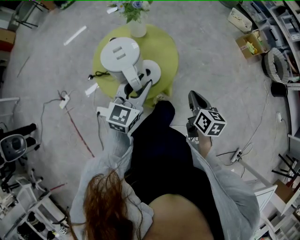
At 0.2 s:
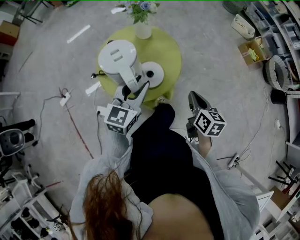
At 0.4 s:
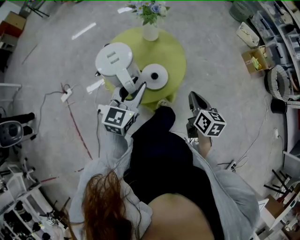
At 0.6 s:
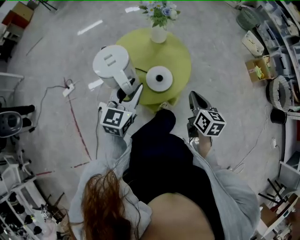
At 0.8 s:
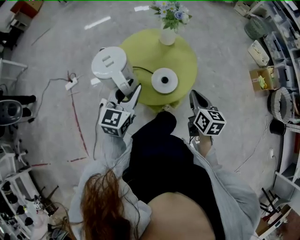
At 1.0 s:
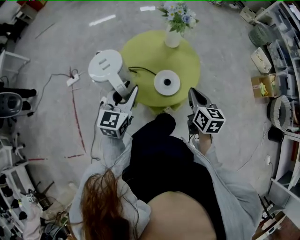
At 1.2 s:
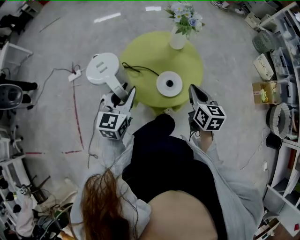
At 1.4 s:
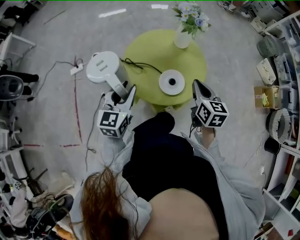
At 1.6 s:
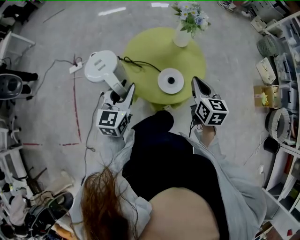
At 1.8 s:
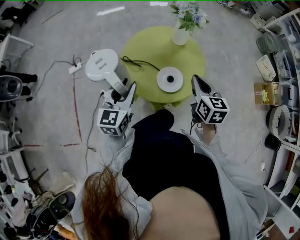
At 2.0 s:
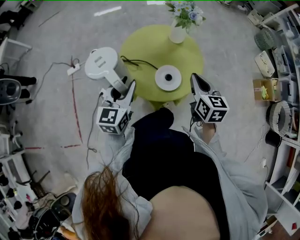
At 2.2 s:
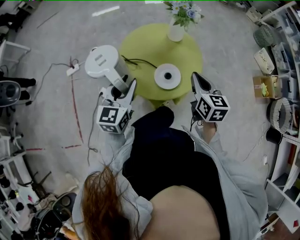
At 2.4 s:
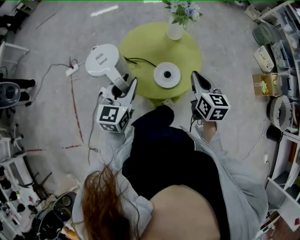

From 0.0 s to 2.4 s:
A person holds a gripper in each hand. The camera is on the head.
From 0.0 s to 1.2 s: The left gripper moves approximately 15 cm, and rotates roughly 30 degrees. Meanwhile the right gripper ends up roughly 15 cm from where it was, and turns by about 30 degrees.
From 1.2 s to 2.4 s: The grippers move only a little.

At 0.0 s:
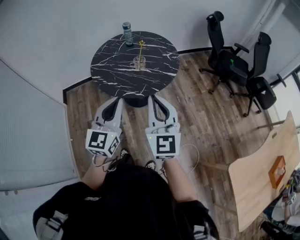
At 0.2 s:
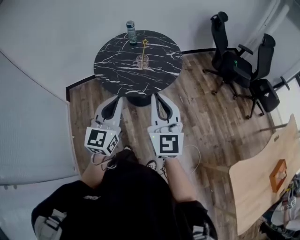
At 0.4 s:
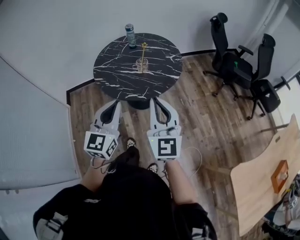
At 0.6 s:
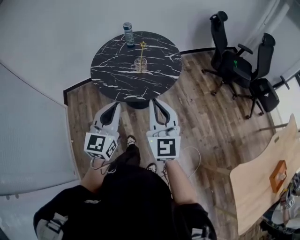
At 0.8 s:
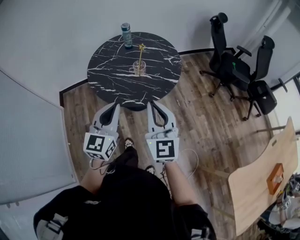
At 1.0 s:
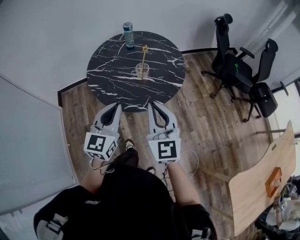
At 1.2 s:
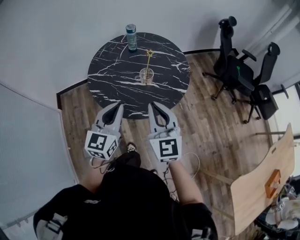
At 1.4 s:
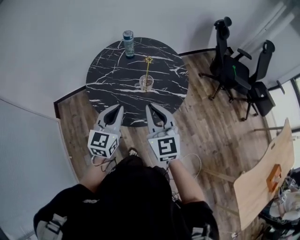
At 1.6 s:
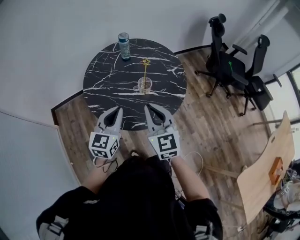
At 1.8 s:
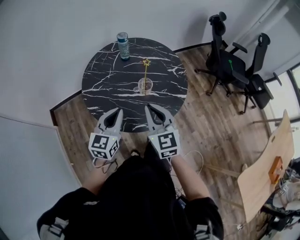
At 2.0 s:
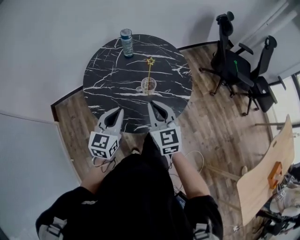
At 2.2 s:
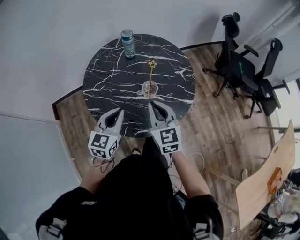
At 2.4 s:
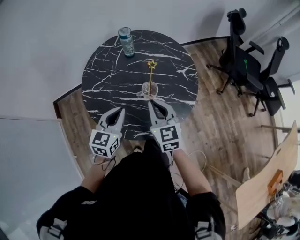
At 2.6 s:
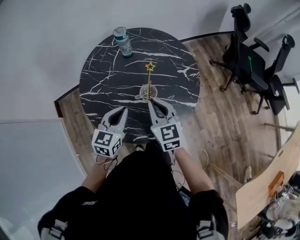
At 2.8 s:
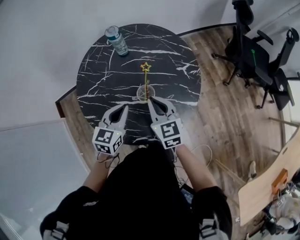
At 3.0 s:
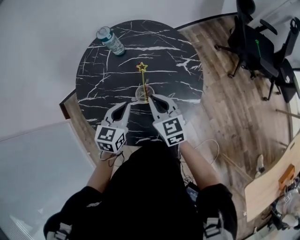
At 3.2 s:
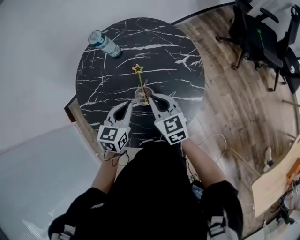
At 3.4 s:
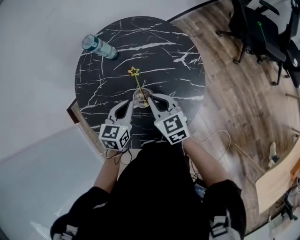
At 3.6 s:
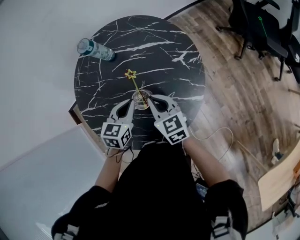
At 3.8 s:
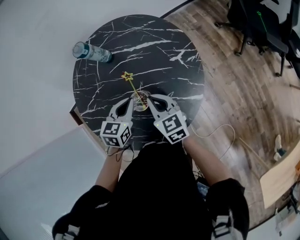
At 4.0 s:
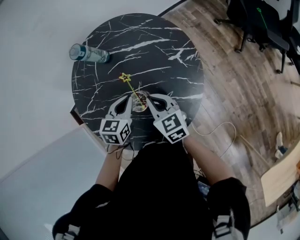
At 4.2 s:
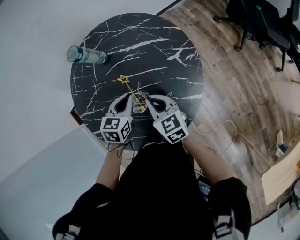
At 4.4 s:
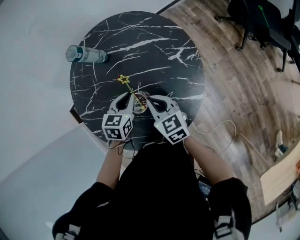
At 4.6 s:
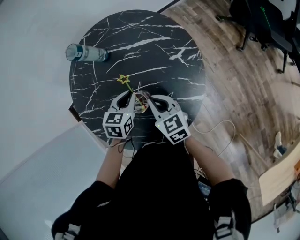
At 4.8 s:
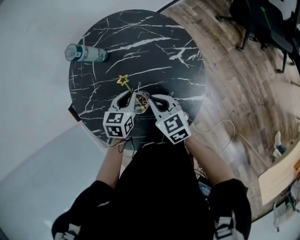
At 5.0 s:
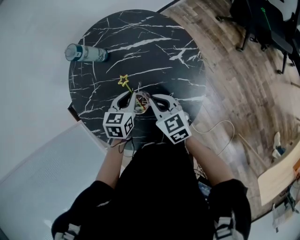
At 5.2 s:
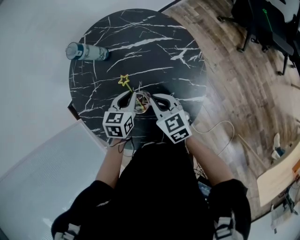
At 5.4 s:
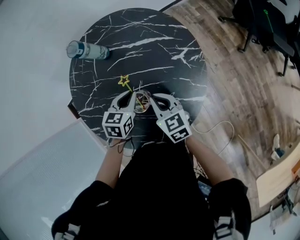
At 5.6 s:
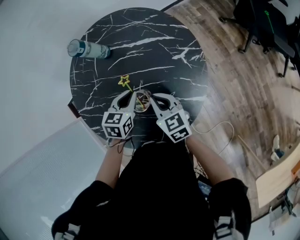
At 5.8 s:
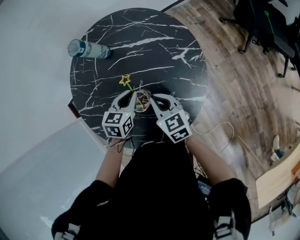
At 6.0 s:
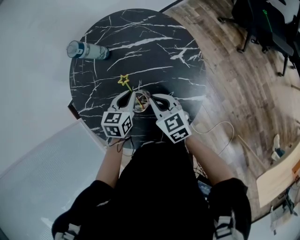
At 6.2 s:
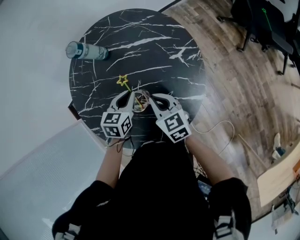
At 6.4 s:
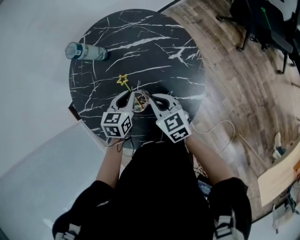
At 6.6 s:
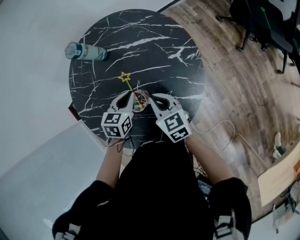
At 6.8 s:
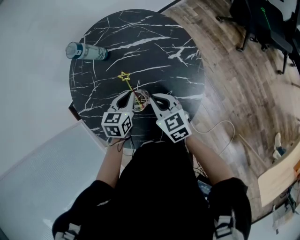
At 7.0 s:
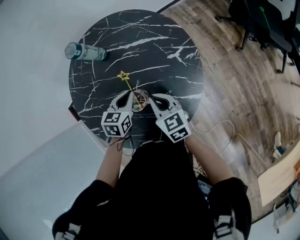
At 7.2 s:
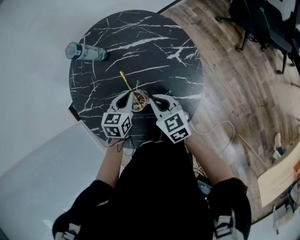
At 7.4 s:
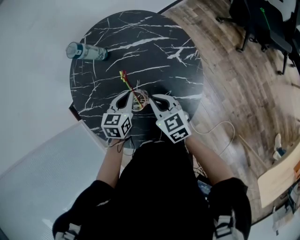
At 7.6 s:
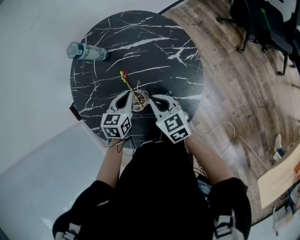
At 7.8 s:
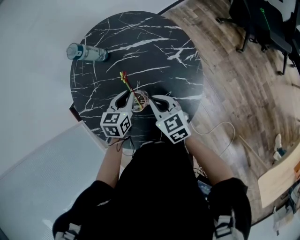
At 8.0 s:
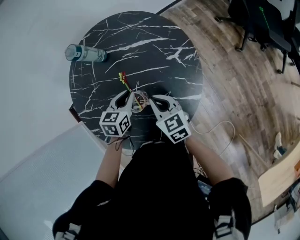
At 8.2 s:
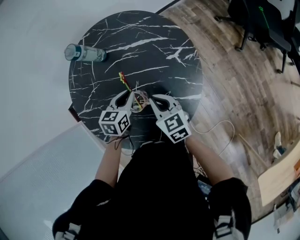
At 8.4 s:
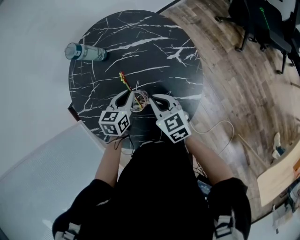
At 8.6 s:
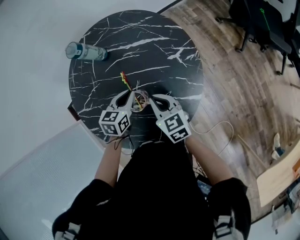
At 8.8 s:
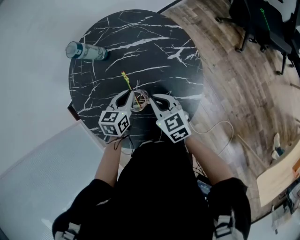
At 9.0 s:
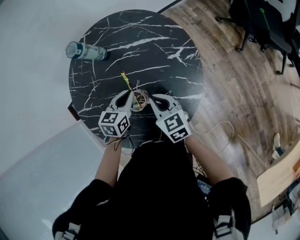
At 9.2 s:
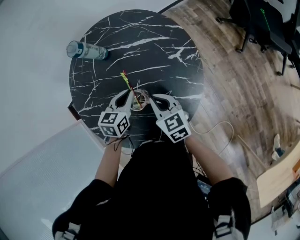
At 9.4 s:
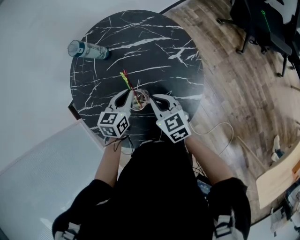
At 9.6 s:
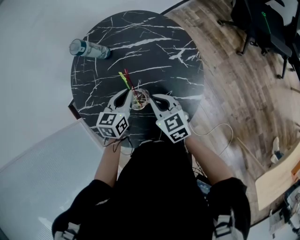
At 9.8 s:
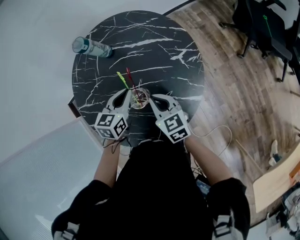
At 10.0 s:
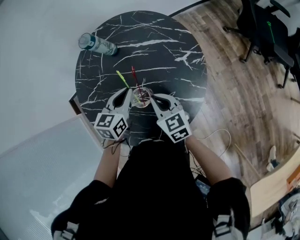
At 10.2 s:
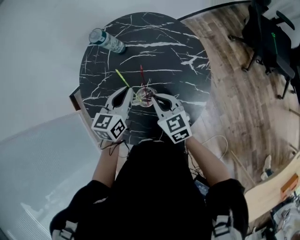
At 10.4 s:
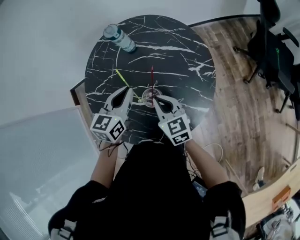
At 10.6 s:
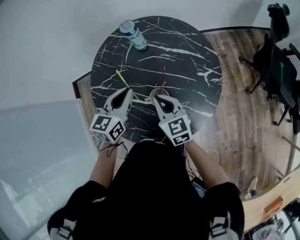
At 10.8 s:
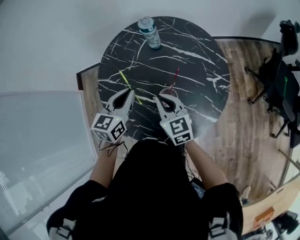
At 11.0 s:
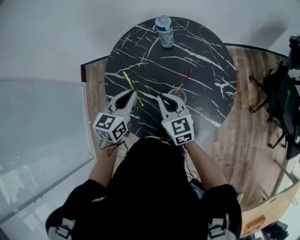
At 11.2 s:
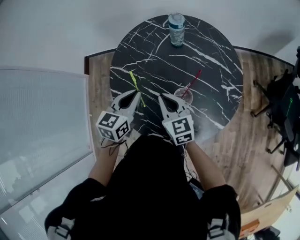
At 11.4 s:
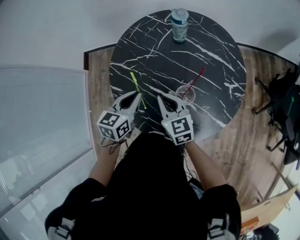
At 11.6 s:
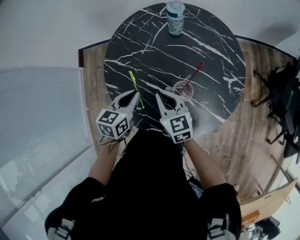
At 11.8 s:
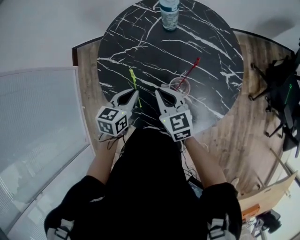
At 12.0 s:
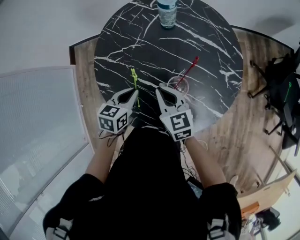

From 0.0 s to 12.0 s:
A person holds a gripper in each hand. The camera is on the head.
From 0.0 s to 1.6 s: The two grippers go some 30 cm forward and to the left.
From 1.6 s to 3.0 s: The grippers both shift forward and downward by some 25 cm. The right gripper changes its angle by roughly 20 degrees. The left gripper turns by roughly 20 degrees.
From 3.0 s to 4.4 s: The left gripper shifts some 15 cm downward, forward and to the right; the right gripper goes about 10 cm downward.
From 4.4 s to 6.0 s: The two grippers keep their place.
From 6.0 s to 7.6 s: The two grippers keep their place.
From 7.6 s to 9.0 s: There are only small adjustments of the grippers.
From 9.0 s to 10.4 s: The right gripper travels upward by roughly 5 cm; the left gripper goes roughly 15 cm upward, and changes its angle by approximately 20 degrees.
From 10.4 s to 12.0 s: The left gripper heads to the left, downward and backward, covering roughly 20 cm, and rotates approximately 20 degrees. Meanwhile the right gripper travels to the left by about 10 cm.

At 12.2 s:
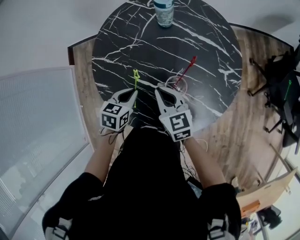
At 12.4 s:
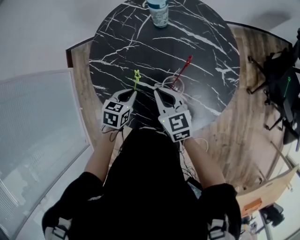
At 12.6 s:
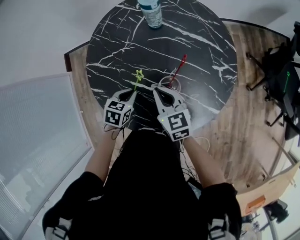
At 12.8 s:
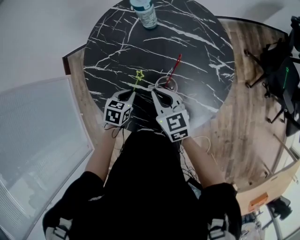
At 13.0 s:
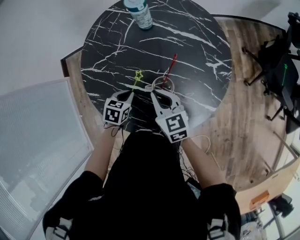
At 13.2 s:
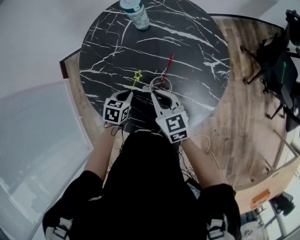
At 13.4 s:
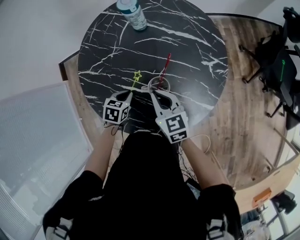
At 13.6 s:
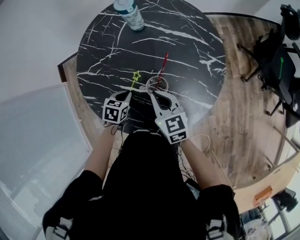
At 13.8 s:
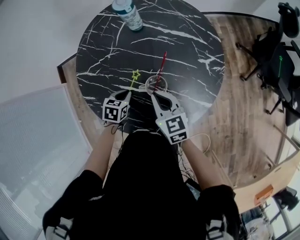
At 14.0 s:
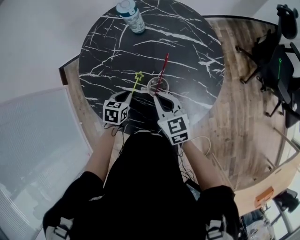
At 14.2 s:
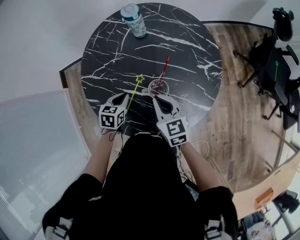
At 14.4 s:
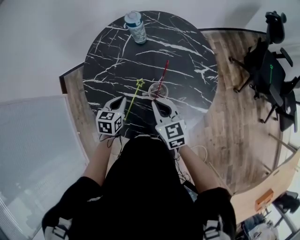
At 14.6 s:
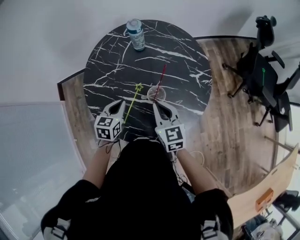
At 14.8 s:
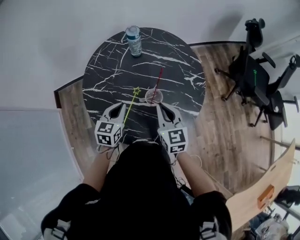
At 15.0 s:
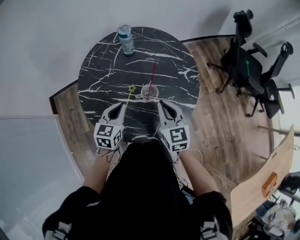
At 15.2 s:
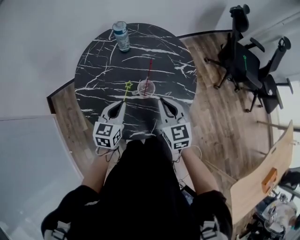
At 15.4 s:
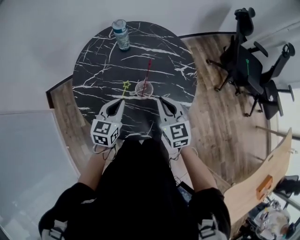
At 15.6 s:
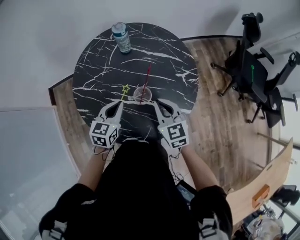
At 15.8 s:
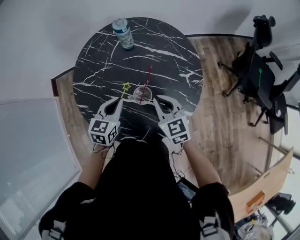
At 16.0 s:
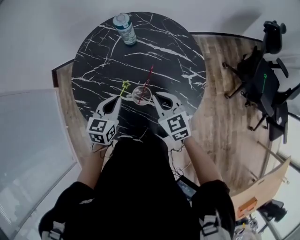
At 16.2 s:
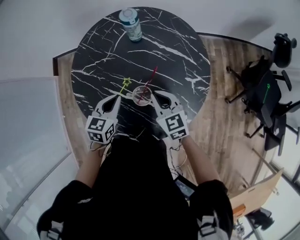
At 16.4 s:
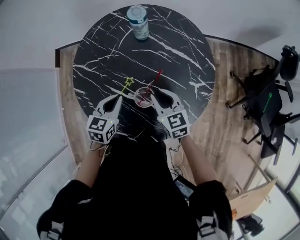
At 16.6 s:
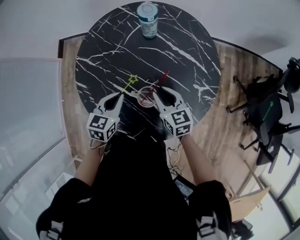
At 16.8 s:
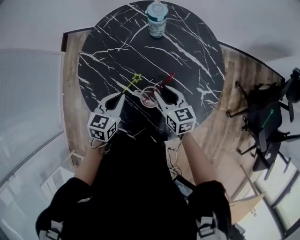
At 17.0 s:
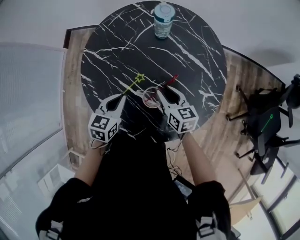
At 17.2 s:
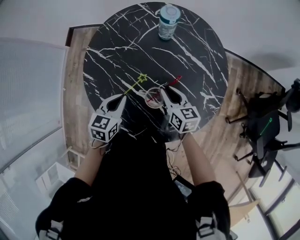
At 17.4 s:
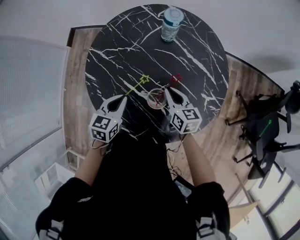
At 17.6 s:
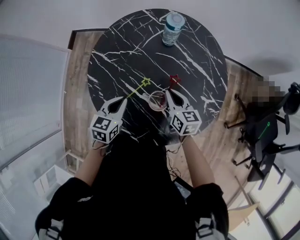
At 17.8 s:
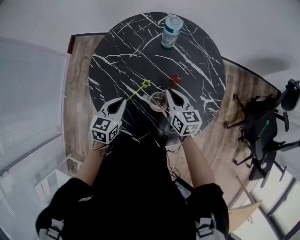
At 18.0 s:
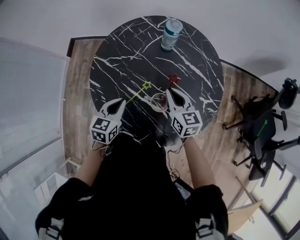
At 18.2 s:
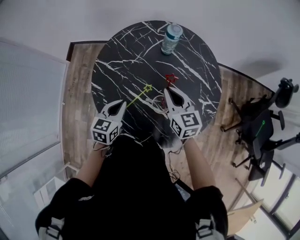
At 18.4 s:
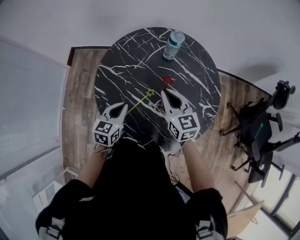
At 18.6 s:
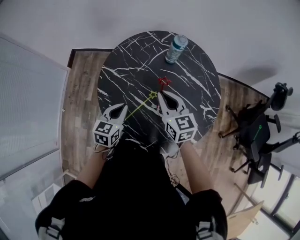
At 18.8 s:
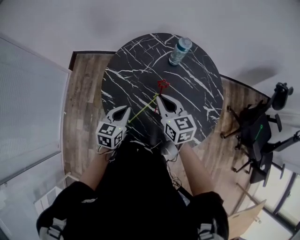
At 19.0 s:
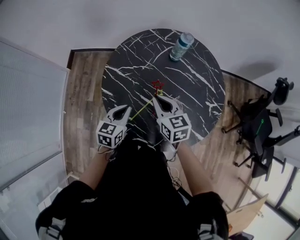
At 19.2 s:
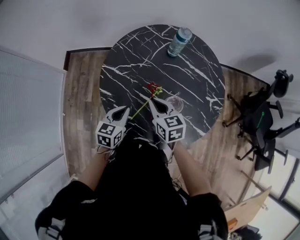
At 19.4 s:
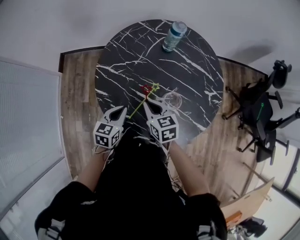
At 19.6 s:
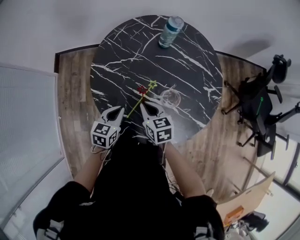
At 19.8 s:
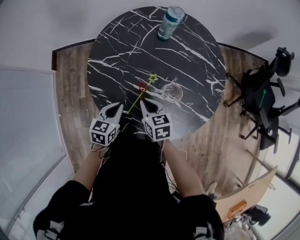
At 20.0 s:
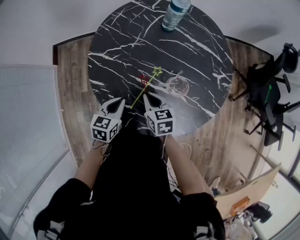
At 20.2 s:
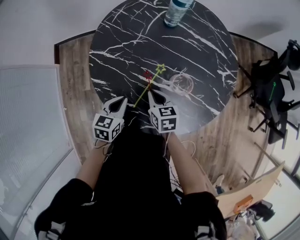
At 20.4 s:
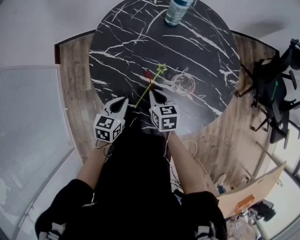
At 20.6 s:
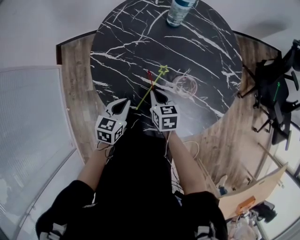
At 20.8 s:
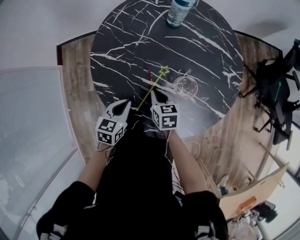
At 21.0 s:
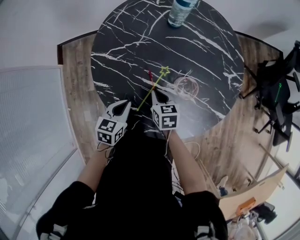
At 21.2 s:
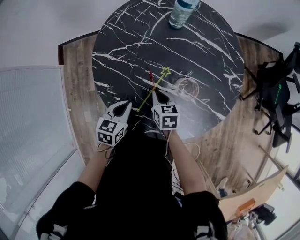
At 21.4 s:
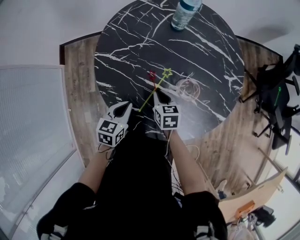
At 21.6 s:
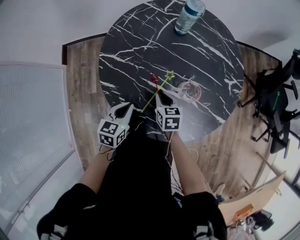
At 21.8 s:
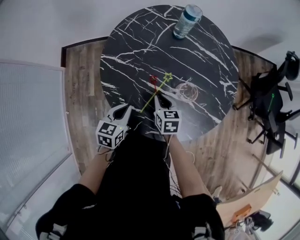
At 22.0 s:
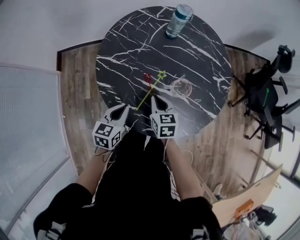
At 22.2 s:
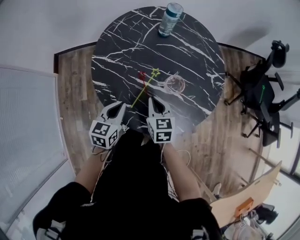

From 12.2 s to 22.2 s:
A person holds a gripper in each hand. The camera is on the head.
From 12.2 s to 13.6 s: The left gripper is displaced downward by approximately 10 cm. The right gripper is displaced to the right by some 5 cm.
From 13.6 s to 15.0 s: The right gripper heads upward and backward, covering some 15 cm, and swivels some 20 degrees. The left gripper moves upward, about 20 cm, and tips its fingers upward by approximately 30 degrees.
From 15.0 s to 16.4 s: The right gripper shifts approximately 10 cm downward, and swivels about 30 degrees, while the left gripper is displaced downward by some 5 cm.
From 16.4 s to 18.0 s: The left gripper is displaced to the left by approximately 5 cm. Meanwhile the right gripper moves some 5 cm.
From 18.0 s to 19.4 s: The right gripper heads to the left, covering roughly 15 cm, while the left gripper travels to the left by roughly 5 cm.
From 19.4 s to 20.8 s: The right gripper is displaced downward by about 15 cm, while the left gripper is displaced downward by roughly 10 cm.
From 20.8 s to 22.2 s: Both grippers travel together upward, about 10 cm.
